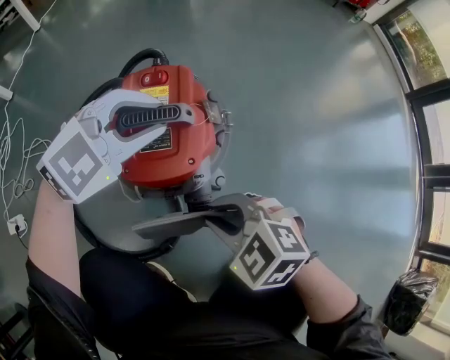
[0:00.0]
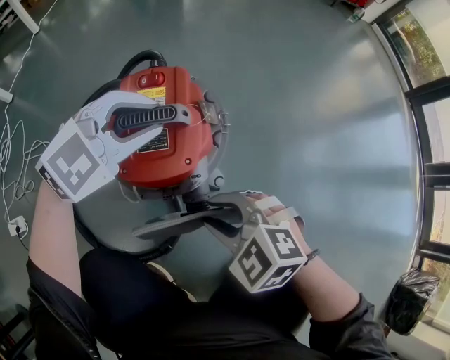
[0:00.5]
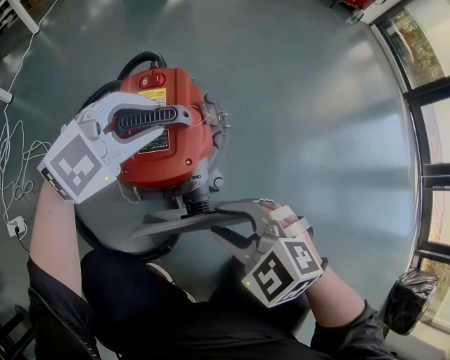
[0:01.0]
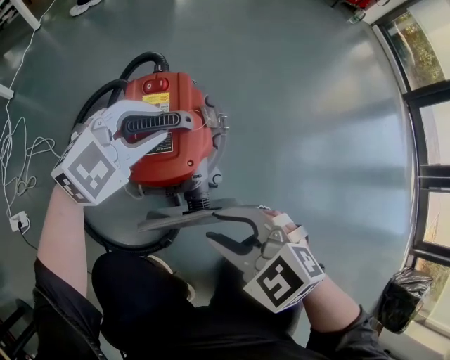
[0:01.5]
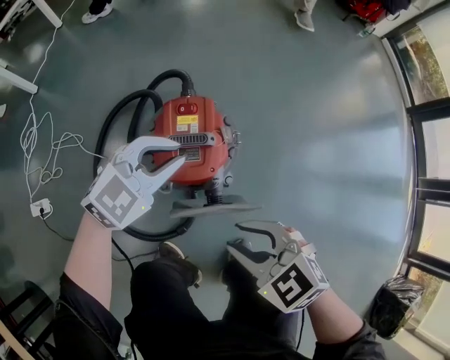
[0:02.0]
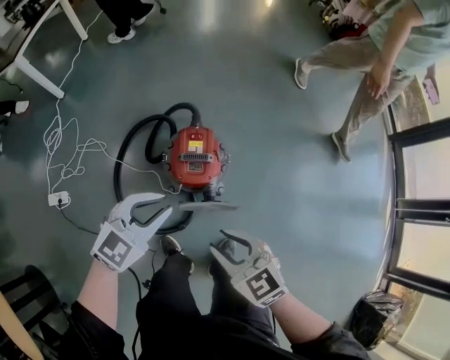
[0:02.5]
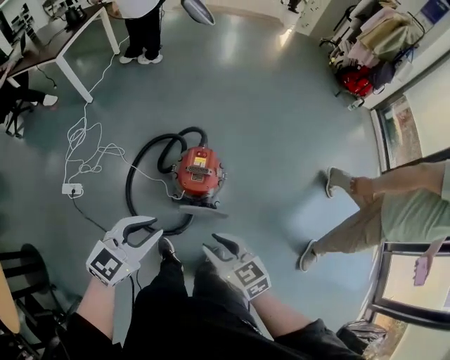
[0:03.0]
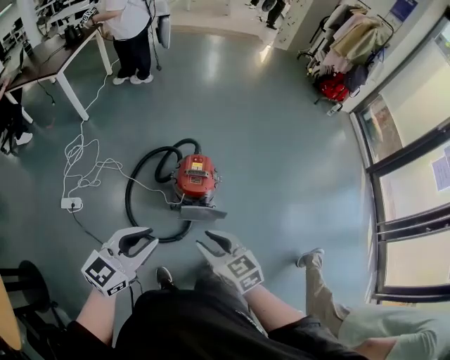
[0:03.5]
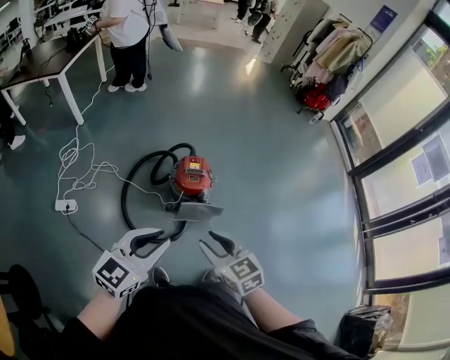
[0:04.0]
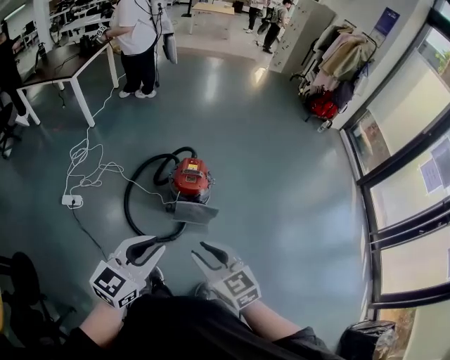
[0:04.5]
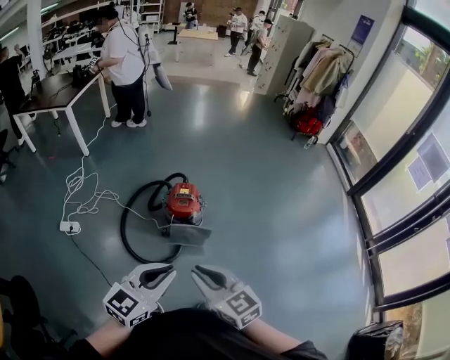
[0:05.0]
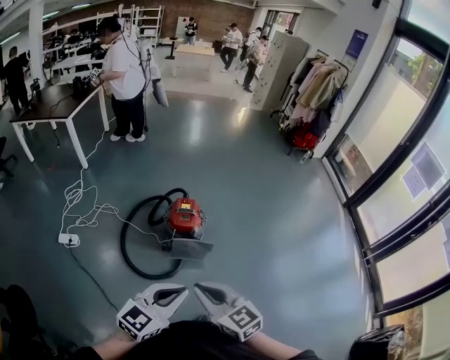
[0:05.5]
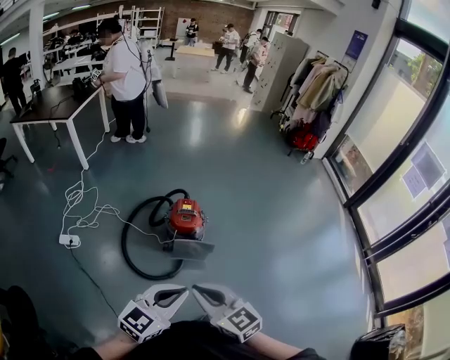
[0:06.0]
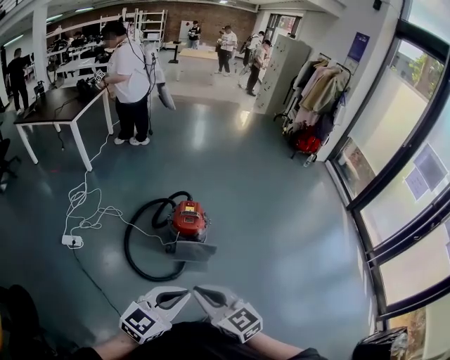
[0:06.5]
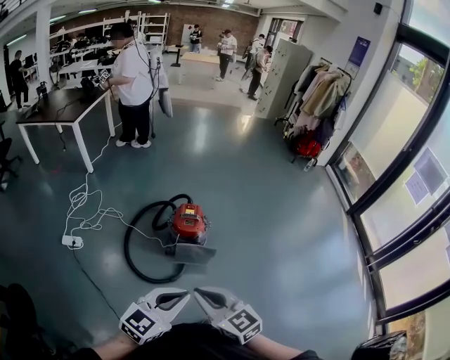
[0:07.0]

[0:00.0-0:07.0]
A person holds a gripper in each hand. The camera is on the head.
0:00.0 to 0:02.0: The left gripper travels upward by some 10 cm; the right gripper moves upward, some 20 cm.
0:02.0 to 0:03.5: The left gripper heads upward and backward, covering roughly 50 cm, and rotates some 40 degrees. Meanwhile the right gripper moves upward and backward, some 35 cm, and turns by about 20 degrees.
0:03.5 to 0:05.0: The right gripper shifts roughly 20 cm backward and upward; the left gripper heads backward and to the right, covering approximately 20 cm.
0:05.0 to 0:07.0: The grippers make only small movements.

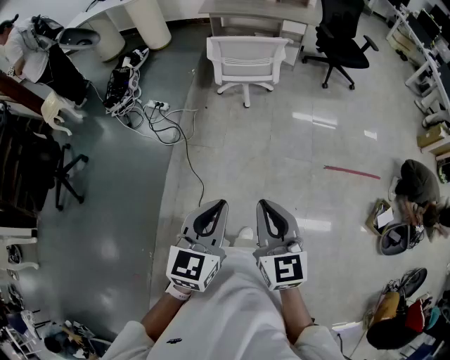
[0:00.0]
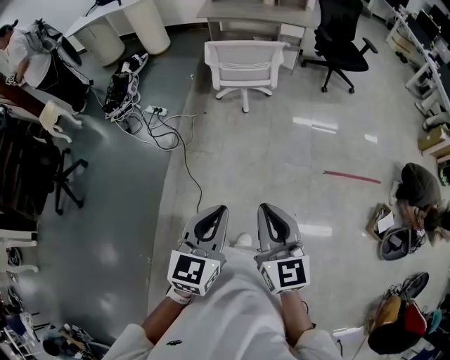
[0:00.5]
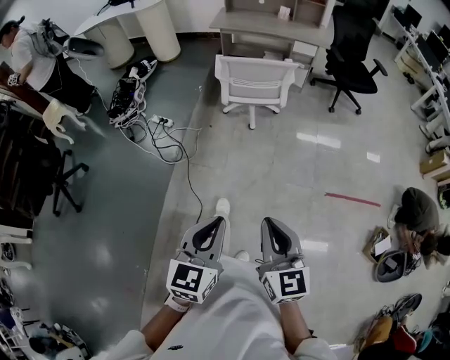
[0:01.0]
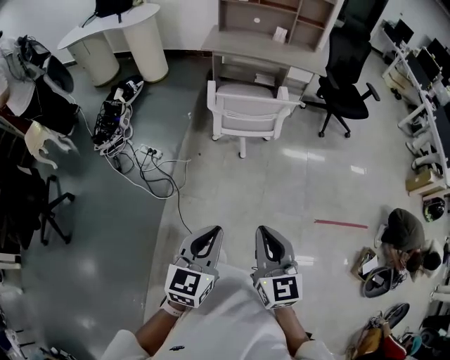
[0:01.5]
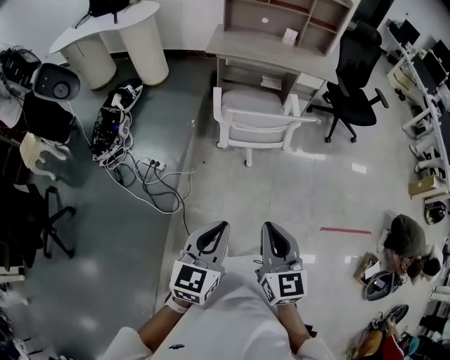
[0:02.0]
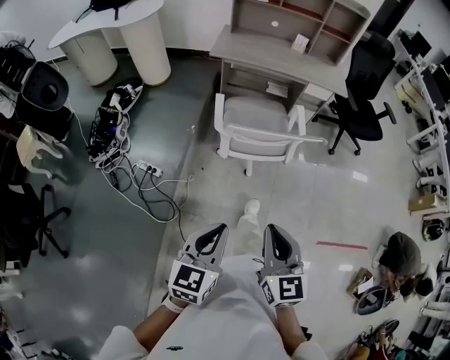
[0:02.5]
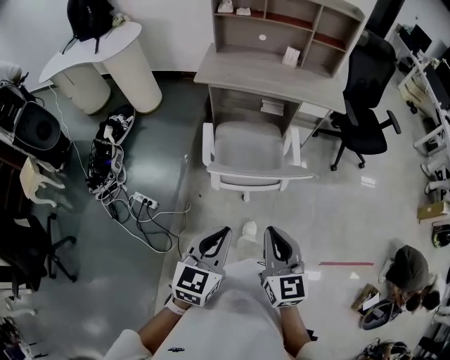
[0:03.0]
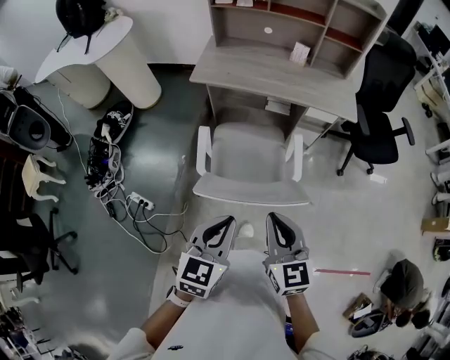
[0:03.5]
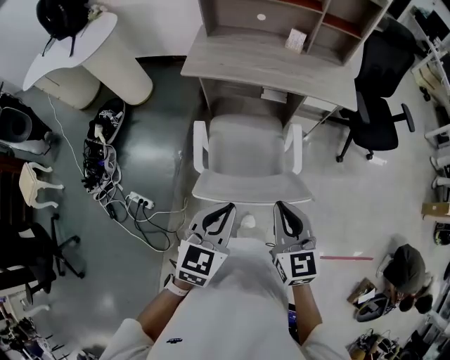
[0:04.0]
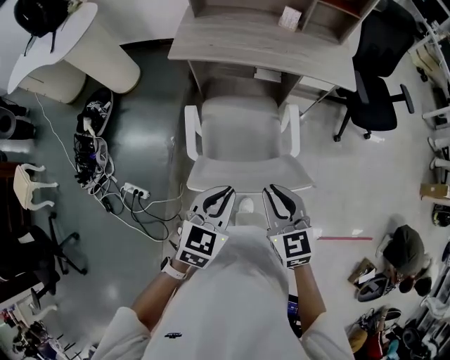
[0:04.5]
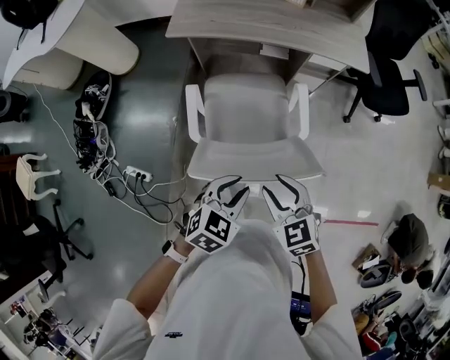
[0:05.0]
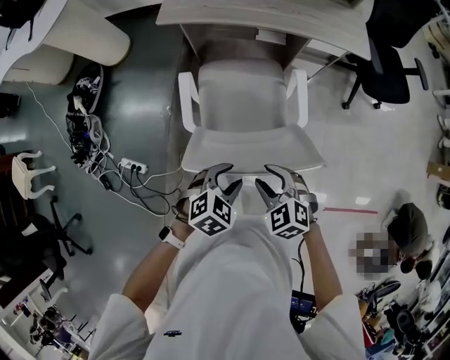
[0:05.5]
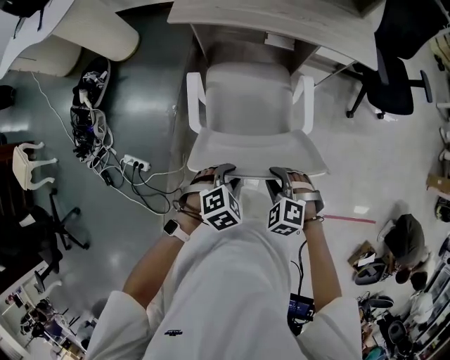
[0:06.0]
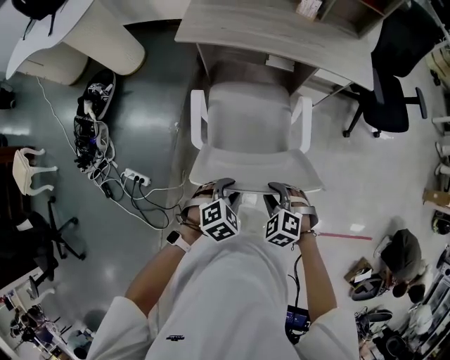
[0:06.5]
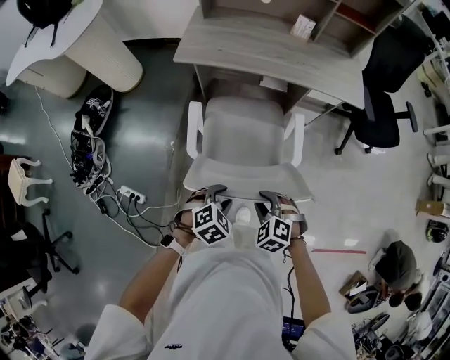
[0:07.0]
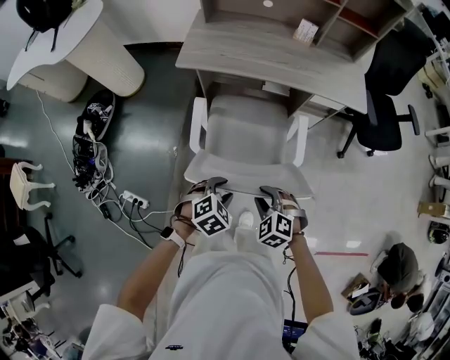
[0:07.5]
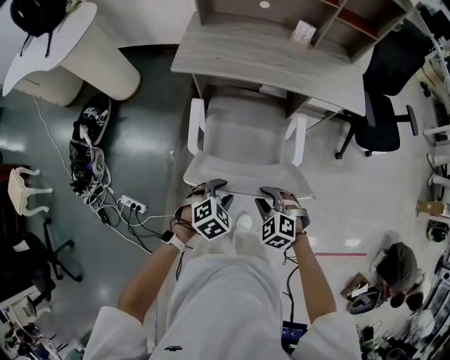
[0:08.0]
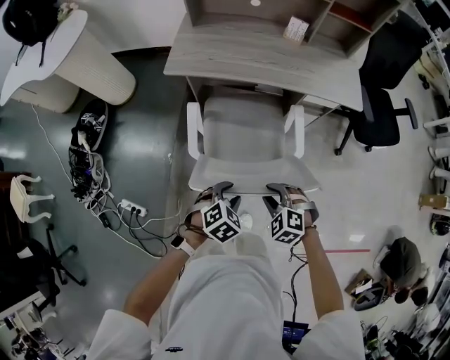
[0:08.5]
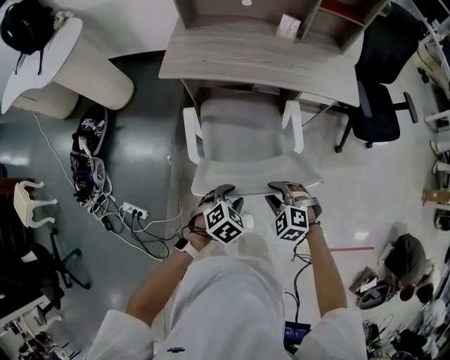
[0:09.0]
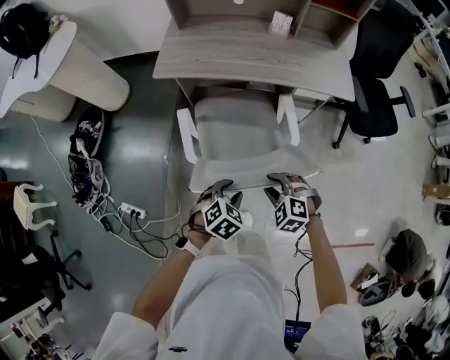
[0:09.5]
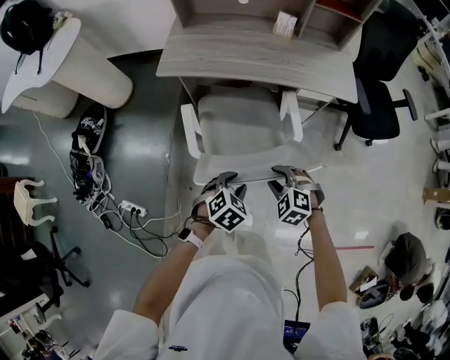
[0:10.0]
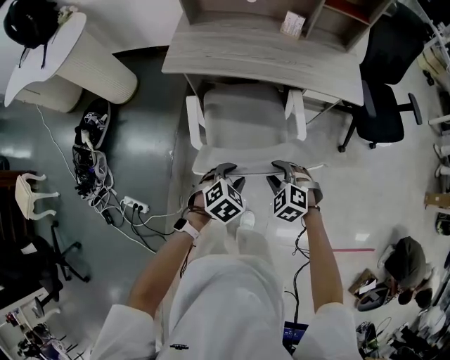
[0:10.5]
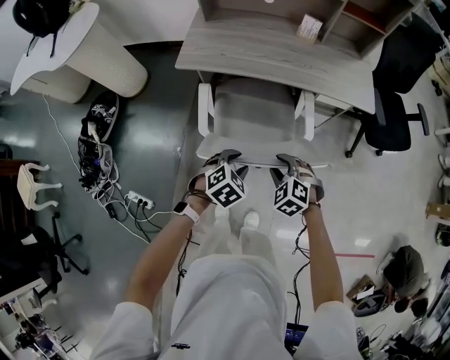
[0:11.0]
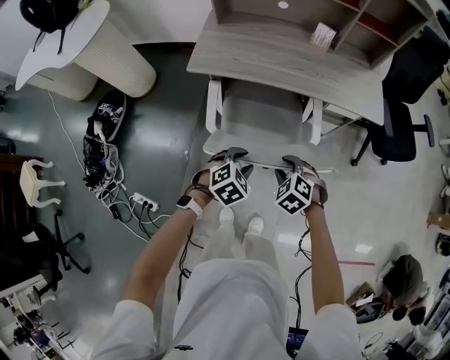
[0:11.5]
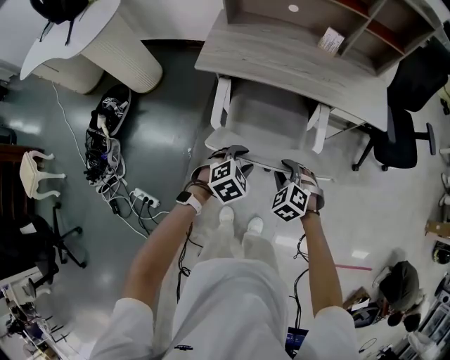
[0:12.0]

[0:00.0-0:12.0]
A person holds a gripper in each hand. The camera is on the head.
0:00.0 to 0:02.0: The two grippers travel together, forward, roughly 40 cm.
0:02.0 to 0:04.0: The pair of grippers is taken forward, roughly 50 cm.
0:04.0 to 0:06.0: The two grippers go roughly 25 cm downward. The left gripper tilts its fingers about 40 degrees downward, and opens its fingers. Meanwhile the right gripper tilts its fingers about 40 degrees downward, and opens its fingers.
0:06.0 to 0:08.0: The grippers both shift forward by some 10 cm.
0:08.0 to 0:10.0: The two grippers go roughly 10 cm to the right.
0:10.0 to 0:12.0: The two grippers go roughly 15 cm to the left and forward.

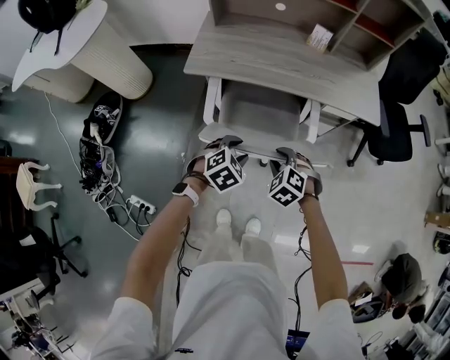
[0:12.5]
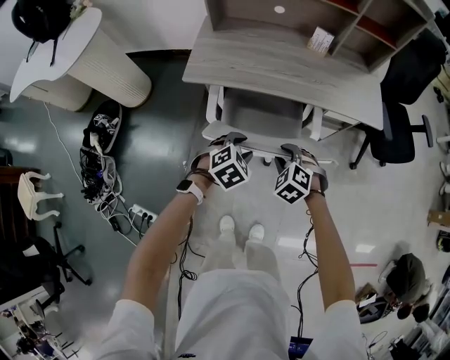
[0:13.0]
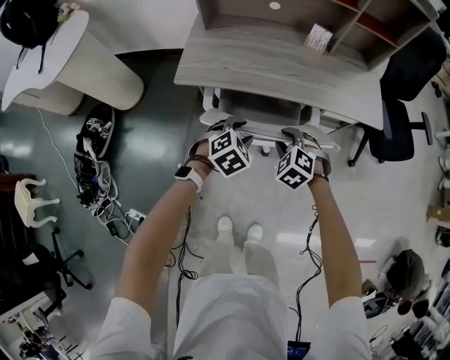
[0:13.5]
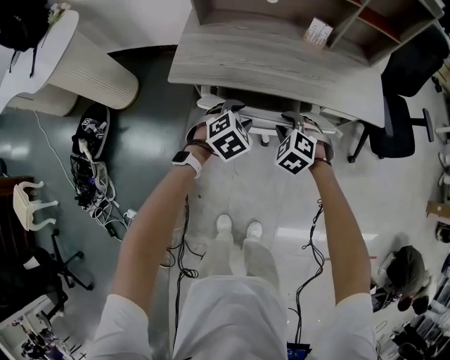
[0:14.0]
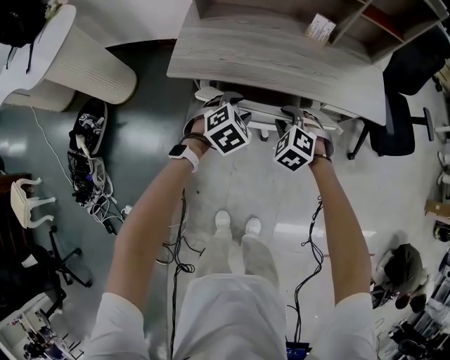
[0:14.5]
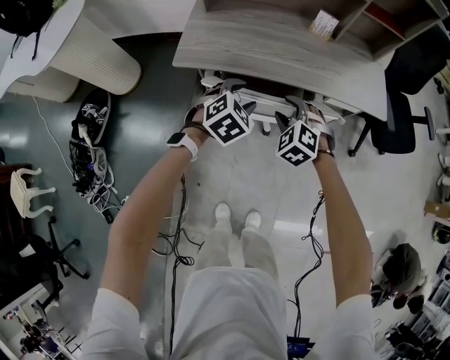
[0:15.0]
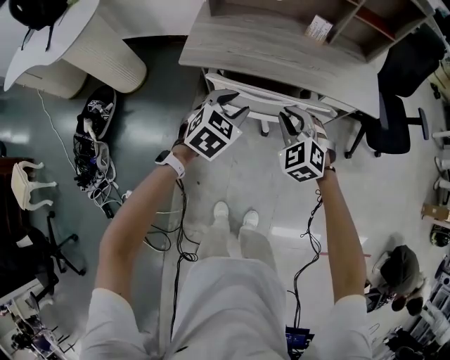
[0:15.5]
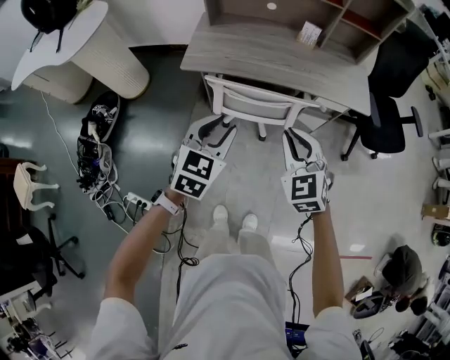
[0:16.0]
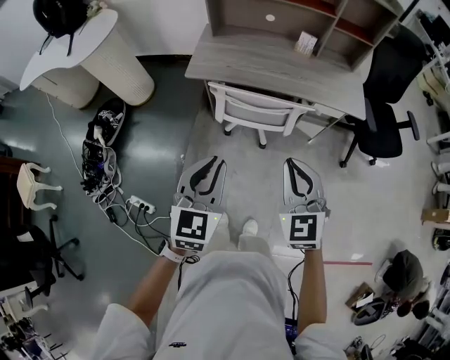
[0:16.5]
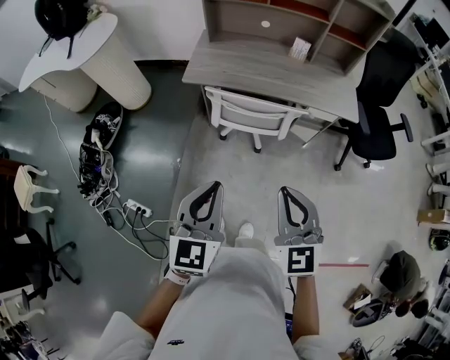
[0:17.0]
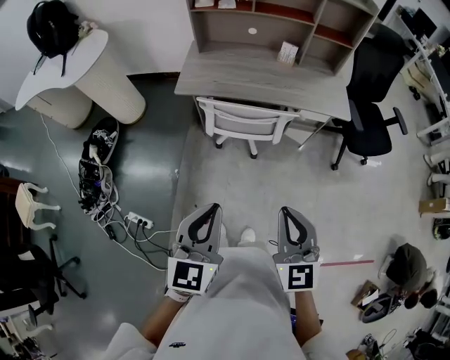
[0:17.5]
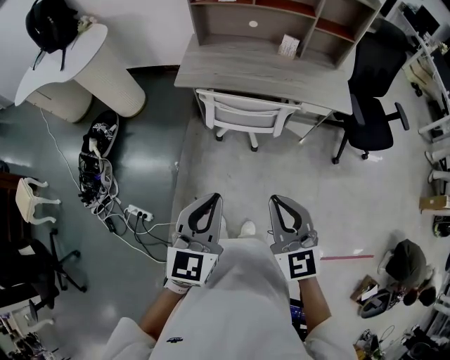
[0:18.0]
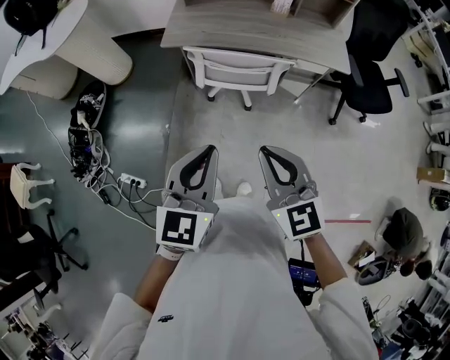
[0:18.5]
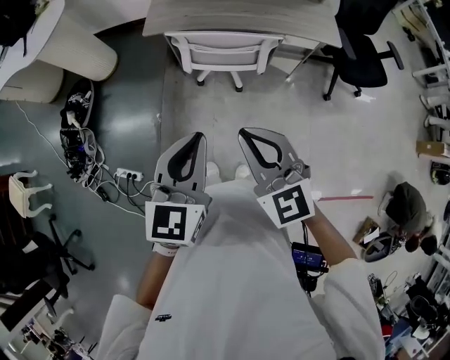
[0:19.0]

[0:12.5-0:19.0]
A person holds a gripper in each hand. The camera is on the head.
0:12.5 to 0:14.5: Both grippers move forward, about 20 cm.
0:14.5 to 0:17.0: Both grippers travel together backward and upward, about 50 cm. The right gripper tilts its fingers some 40 degrees upward, and closes up, while the left gripper tilts its fingers some 40 degrees upward, and closes.
0:17.0 to 0:19.0: The right gripper ends up approximately 5 cm from where it was.

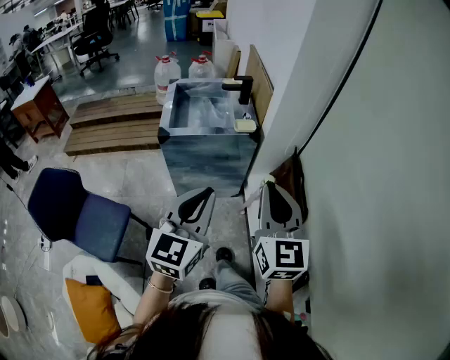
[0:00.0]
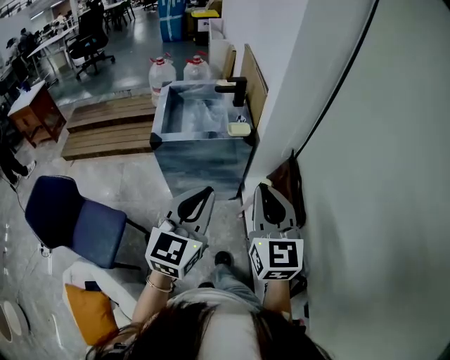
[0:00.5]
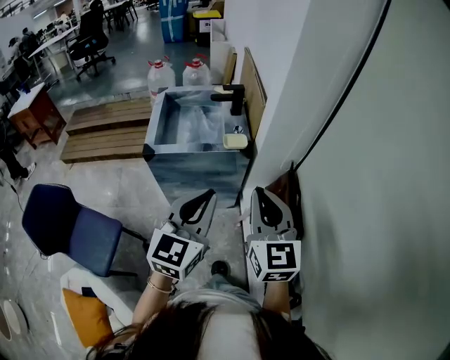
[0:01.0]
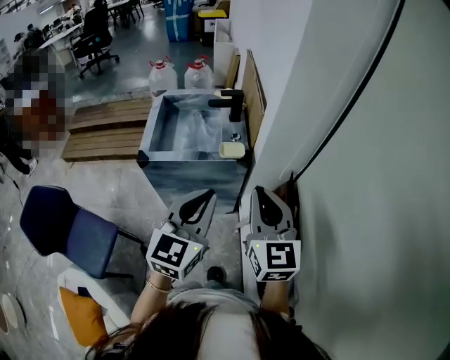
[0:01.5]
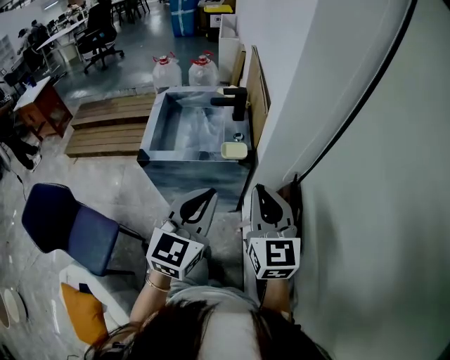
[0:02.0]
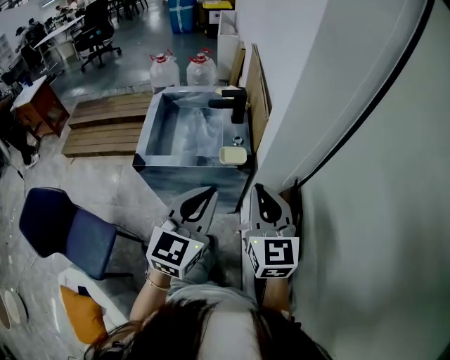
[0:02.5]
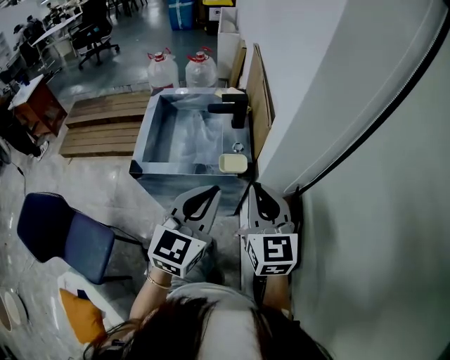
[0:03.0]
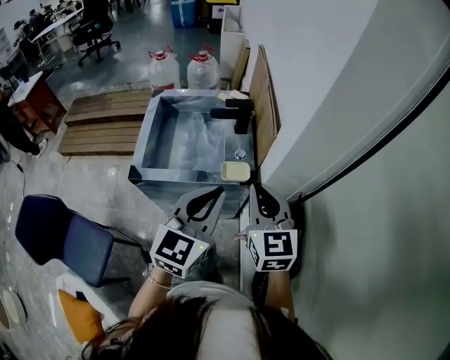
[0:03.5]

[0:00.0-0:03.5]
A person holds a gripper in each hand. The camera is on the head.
0:00.0 to 0:02.0: The two grippers go approximately 20 cm forward.
0:02.0 to 0:03.5: Both grippers travel together forward, roughly 15 cm.
